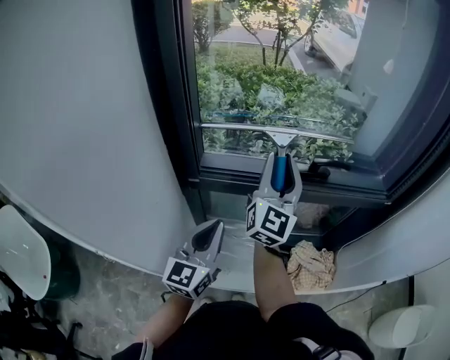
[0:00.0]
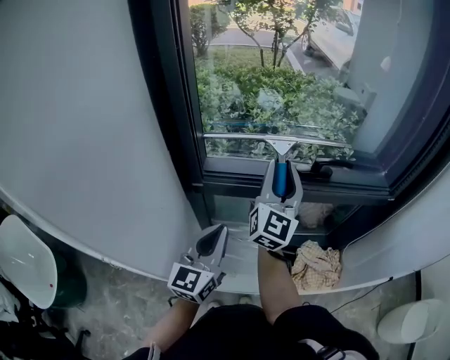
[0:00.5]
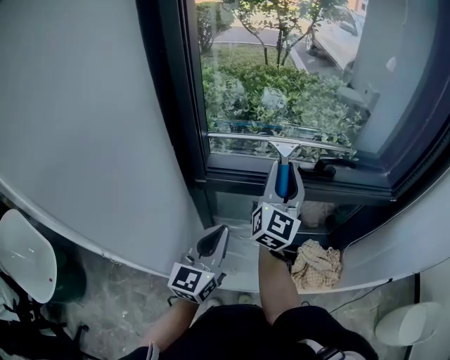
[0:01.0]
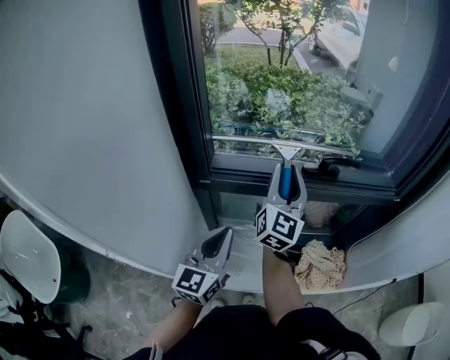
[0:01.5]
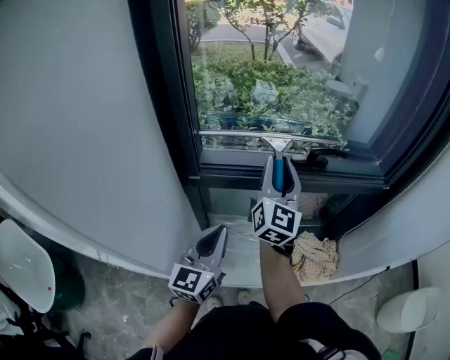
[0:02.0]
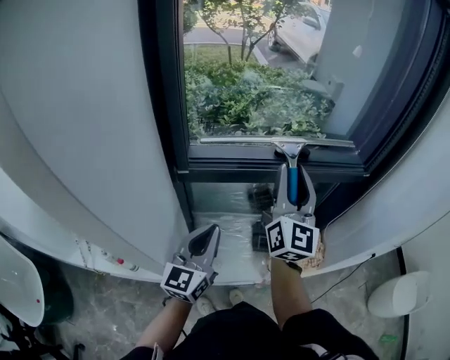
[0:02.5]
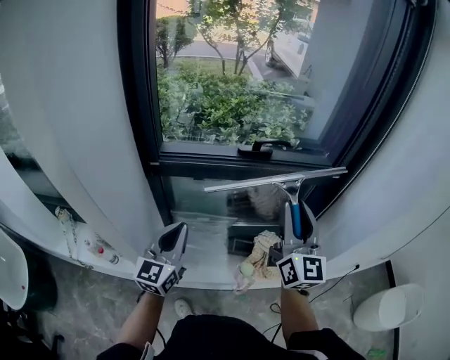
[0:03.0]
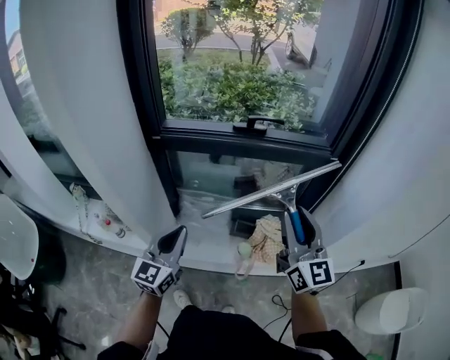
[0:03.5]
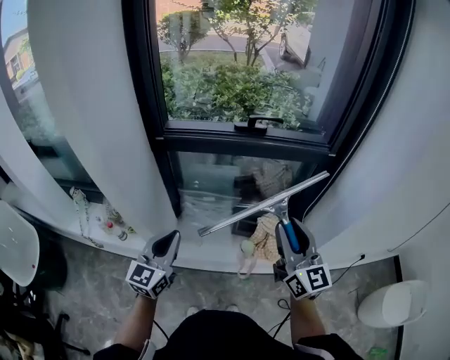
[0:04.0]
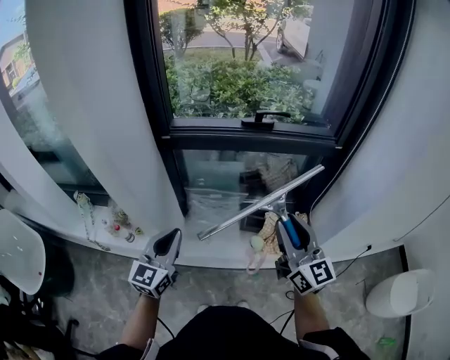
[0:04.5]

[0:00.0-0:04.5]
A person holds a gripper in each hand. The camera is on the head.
0:00.0 to 0:02.0: The grippers move only a little.
0:02.0 to 0:04.5: The right gripper heads backward and to the right, covering roughly 35 cm, and rotates roughly 30 degrees. The left gripper travels backward by some 20 cm.

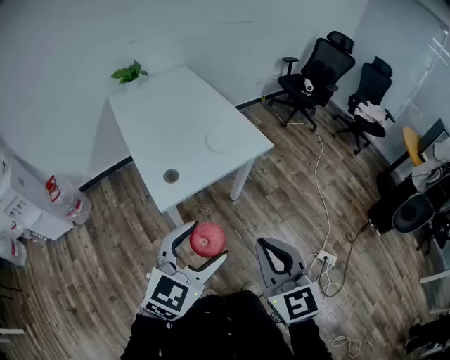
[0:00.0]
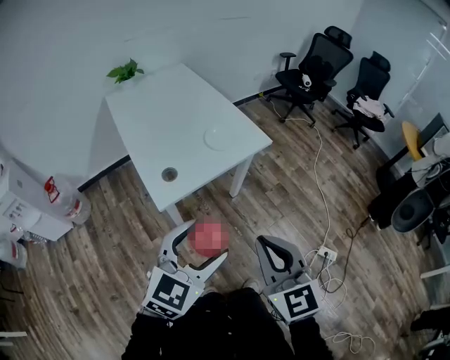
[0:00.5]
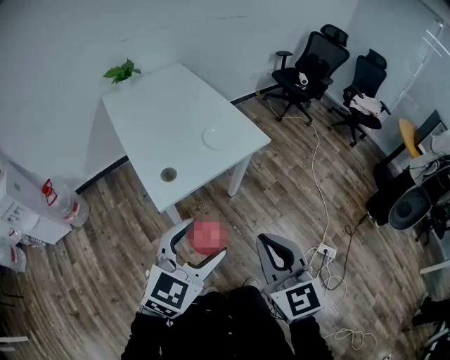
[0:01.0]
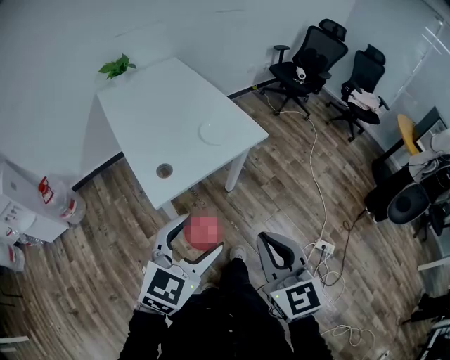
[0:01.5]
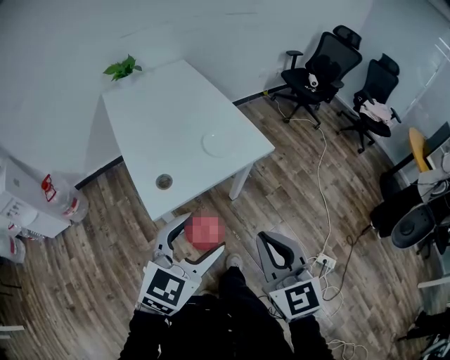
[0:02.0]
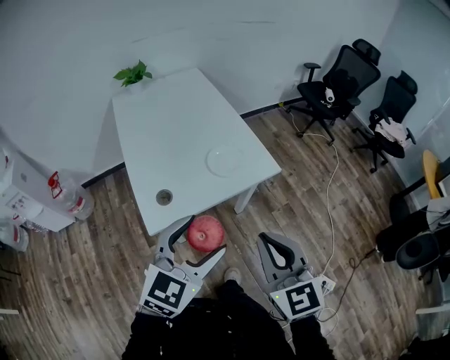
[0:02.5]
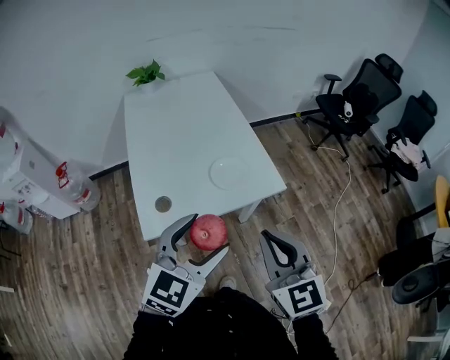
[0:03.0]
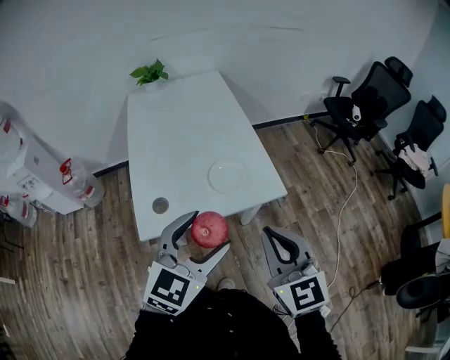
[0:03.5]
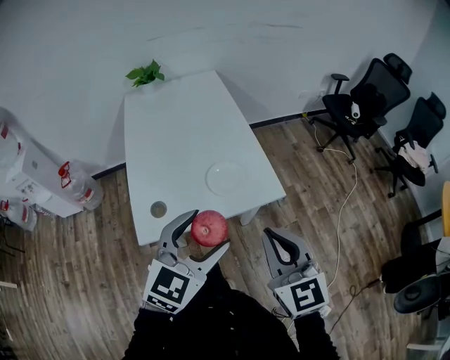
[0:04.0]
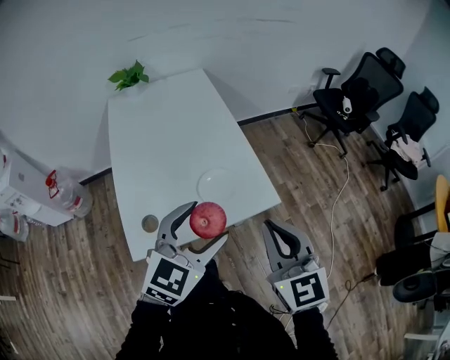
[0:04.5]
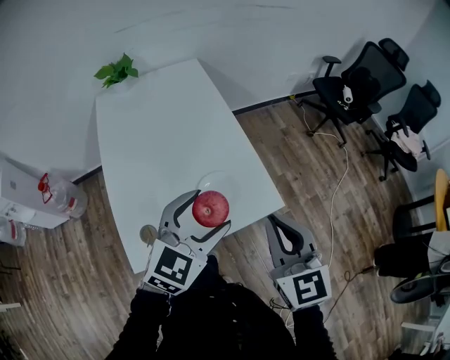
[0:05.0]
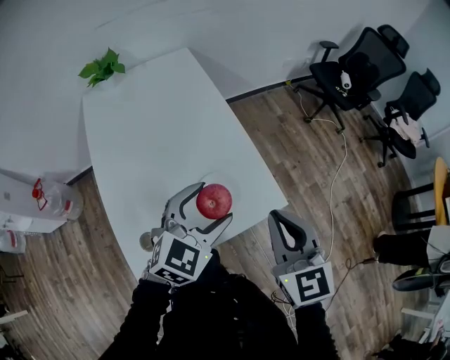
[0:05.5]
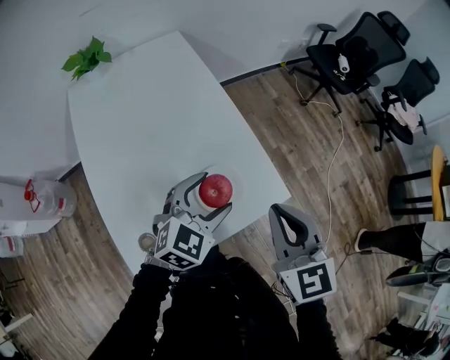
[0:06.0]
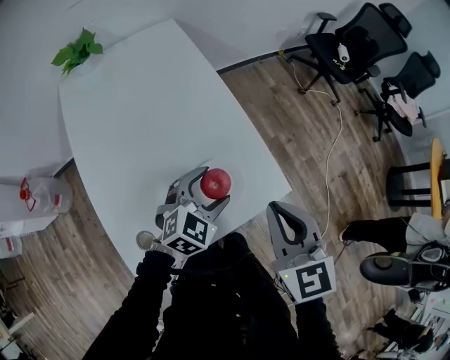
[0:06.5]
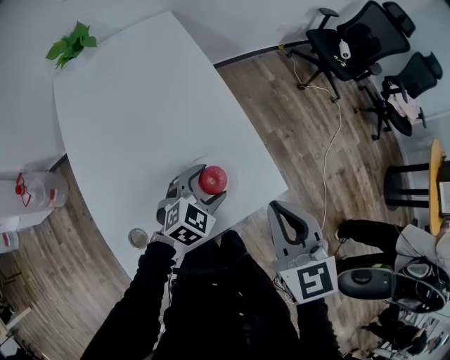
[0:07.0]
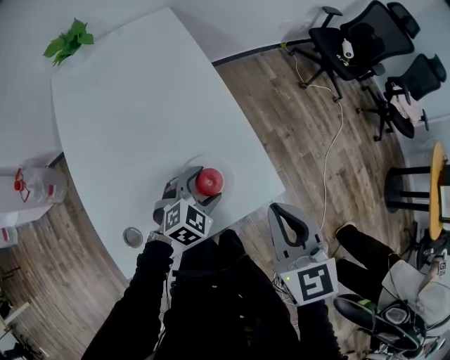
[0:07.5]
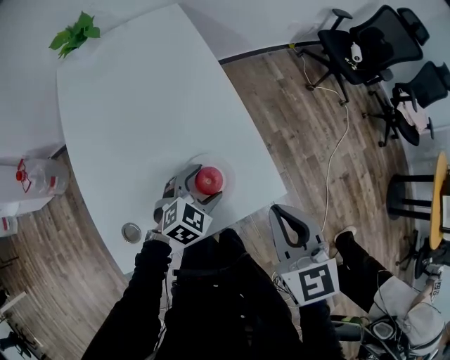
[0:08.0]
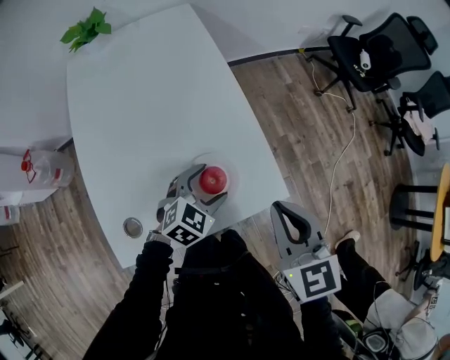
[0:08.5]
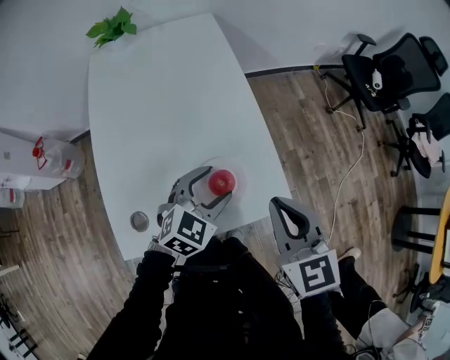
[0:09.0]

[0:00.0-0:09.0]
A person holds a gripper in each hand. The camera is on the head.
0:00.0 to 0:02.0: The two grippers go about 10 cm forward.
0:02.0 to 0:04.5: Both grippers travel together forward, approximately 25 cm.
0:04.5 to 0:07.0: The right gripper goes roughly 15 cm forward and downward, while the left gripper shifts approximately 30 cm downward and forward, and swivels about 20 degrees.
0:07.0 to 0:09.0: The left gripper is displaced upward by some 5 cm.

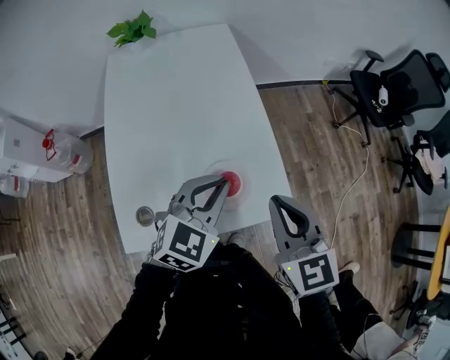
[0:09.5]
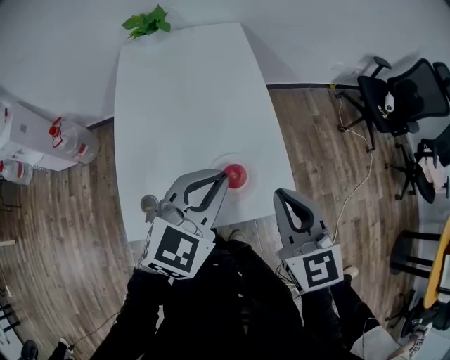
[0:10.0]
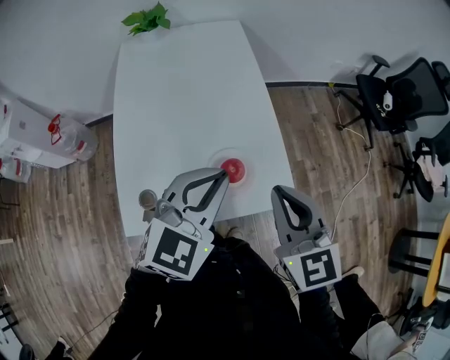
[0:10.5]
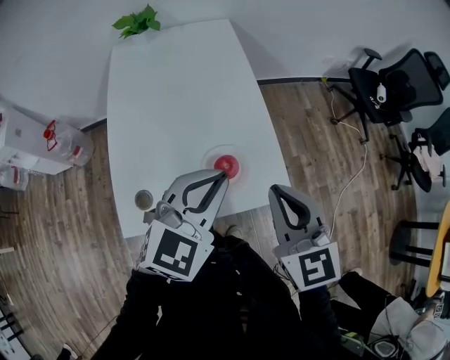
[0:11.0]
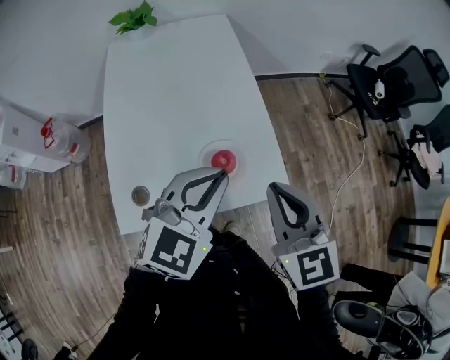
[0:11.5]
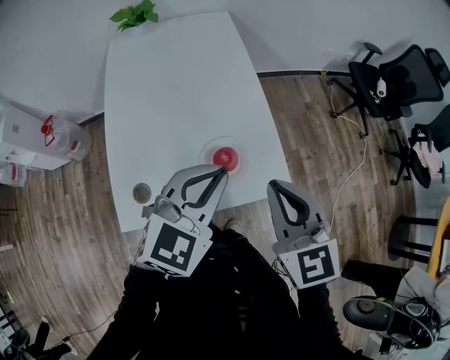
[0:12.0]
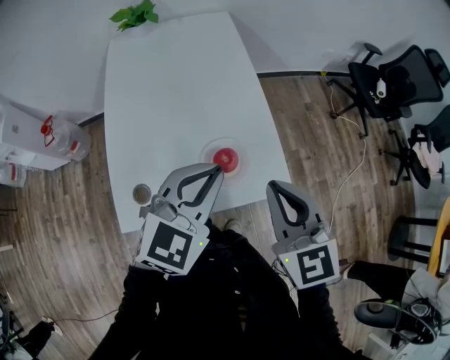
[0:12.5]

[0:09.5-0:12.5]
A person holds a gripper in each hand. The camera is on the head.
0:09.5 to 0:11.0: The left gripper goes approximately 10 cm upward and backward.
0:11.0 to 0:12.5: The grippers make only small movements.

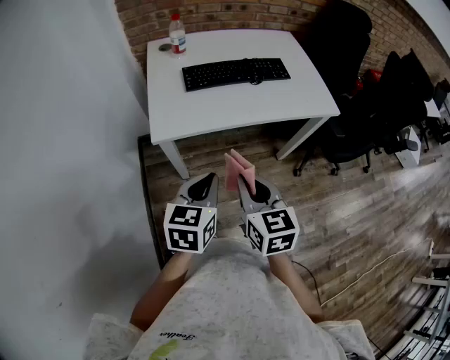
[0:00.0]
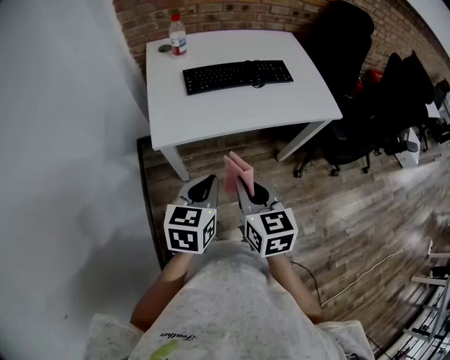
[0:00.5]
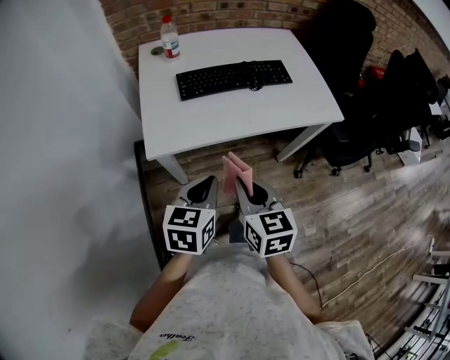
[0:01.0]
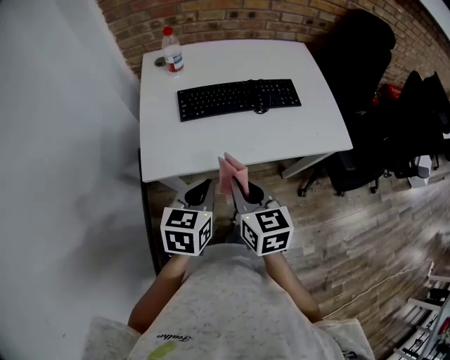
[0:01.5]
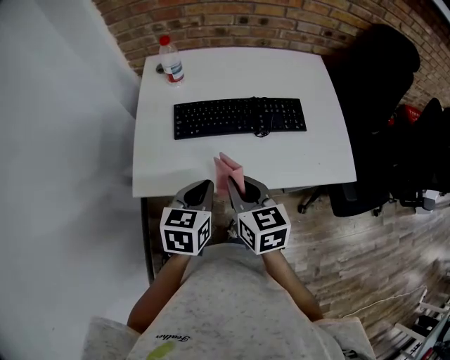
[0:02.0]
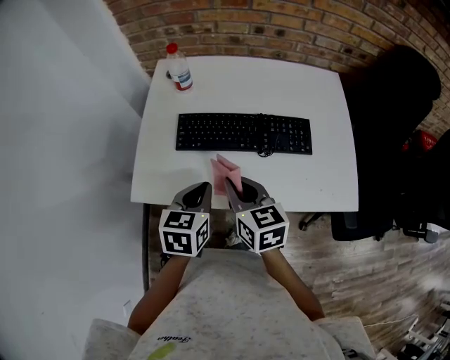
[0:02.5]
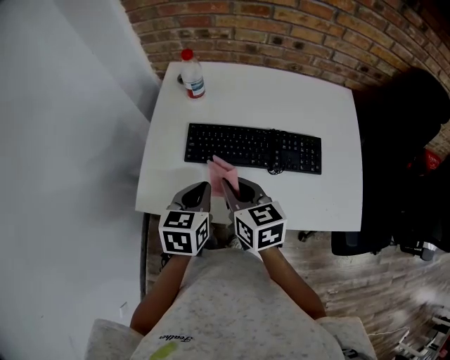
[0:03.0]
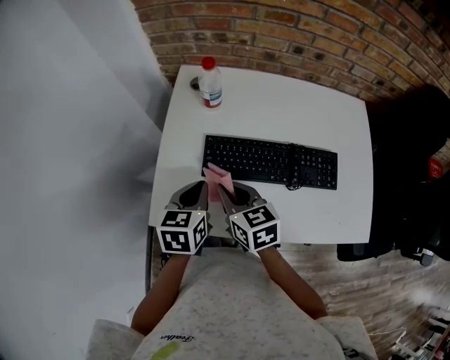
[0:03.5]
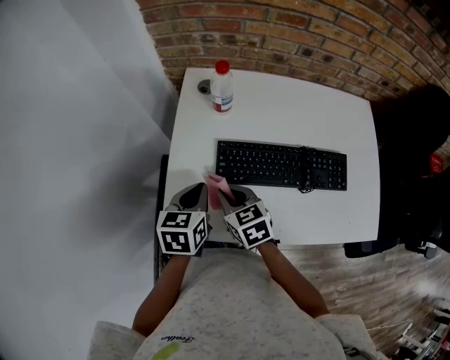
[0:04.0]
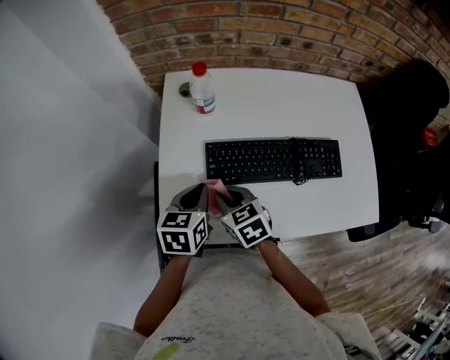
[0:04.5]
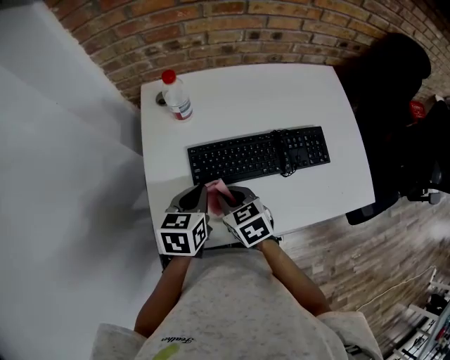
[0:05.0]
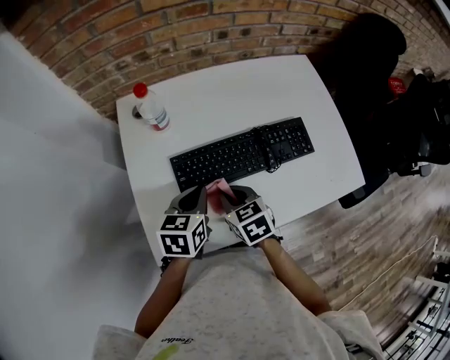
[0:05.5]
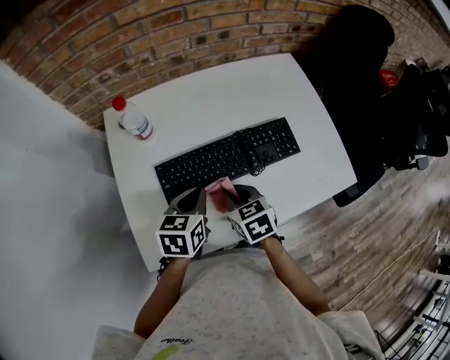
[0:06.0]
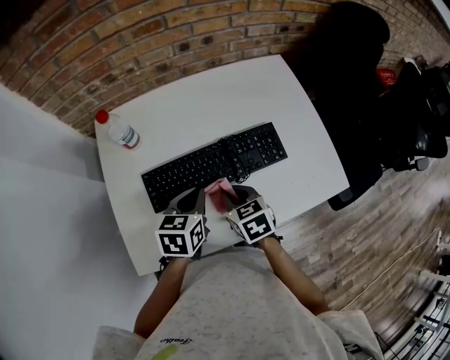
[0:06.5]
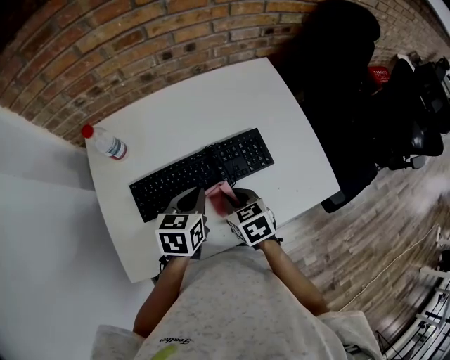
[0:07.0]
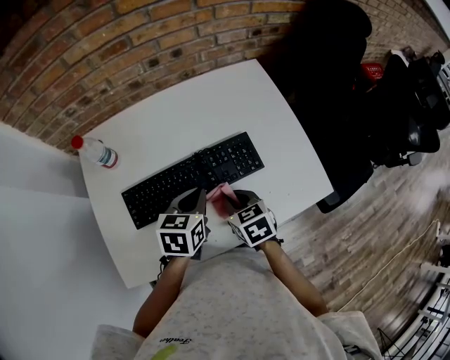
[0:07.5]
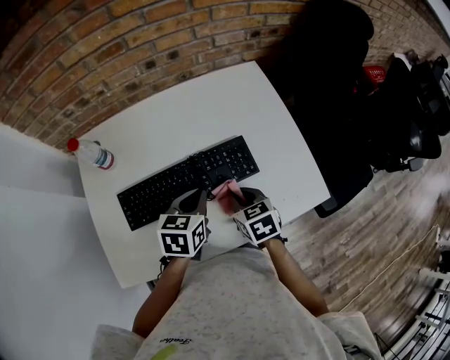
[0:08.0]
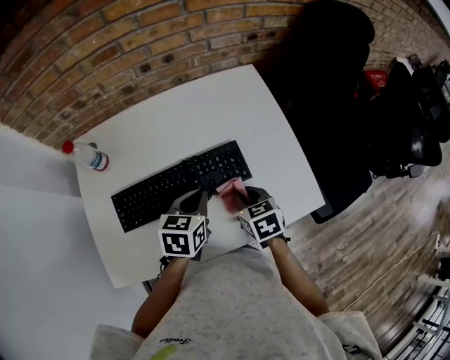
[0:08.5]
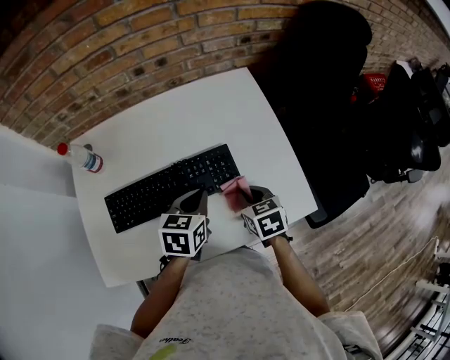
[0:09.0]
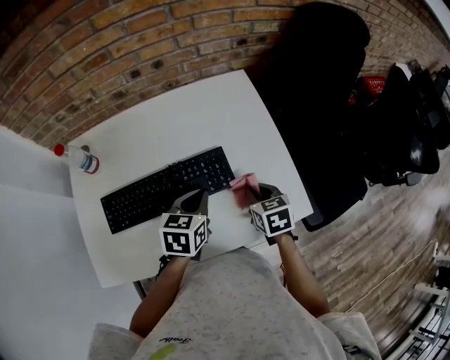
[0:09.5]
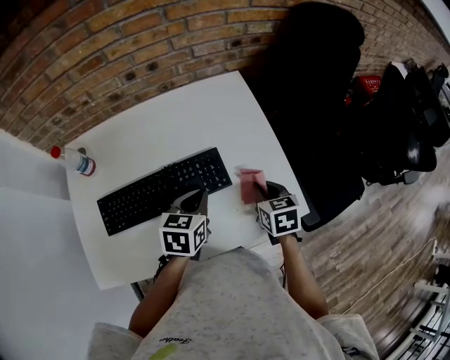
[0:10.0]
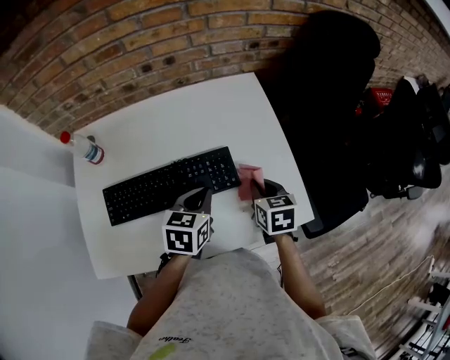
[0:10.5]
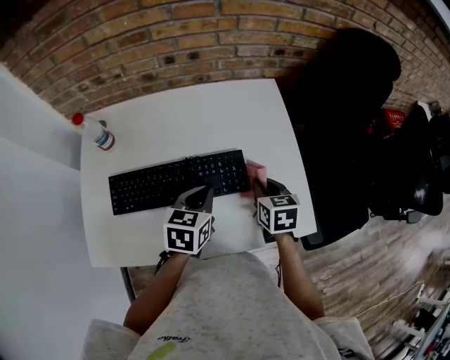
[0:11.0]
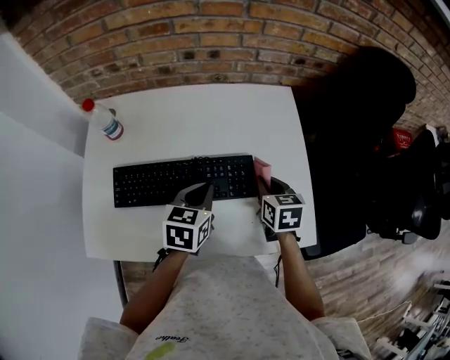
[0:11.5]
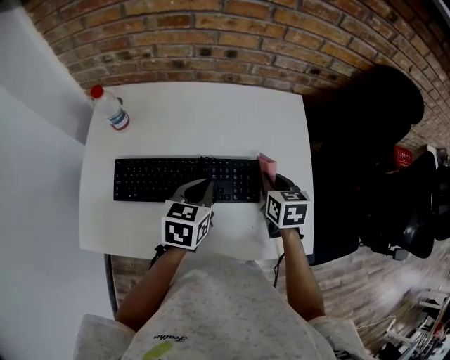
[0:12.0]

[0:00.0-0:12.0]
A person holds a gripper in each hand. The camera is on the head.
0:00.0 to 0:02.0: Both grippers move forward, roughly 25 cm.
0:02.0 to 0:04.0: The right gripper shifts about 20 cm forward, to the left and downward, and changes its angle by approximately 20 degrees, while the left gripper is displaced forward and to the left by roughly 20 cm.
0:04.0 to 0:06.0: The left gripper changes place by approximately 15 cm, and rotates about 30 degrees; the right gripper moves about 15 cm, and turns by about 30 degrees.
0:06.0 to 0:08.0: Both grippers move to the right, some 15 cm.
0:08.0 to 0:10.0: The left gripper shifts about 10 cm to the right. The right gripper heads to the right, covering roughly 15 cm.
0:10.0 to 0:12.0: The left gripper moves to the left, about 10 cm. Meanwhile the right gripper heads forward and to the left, covering about 10 cm.
